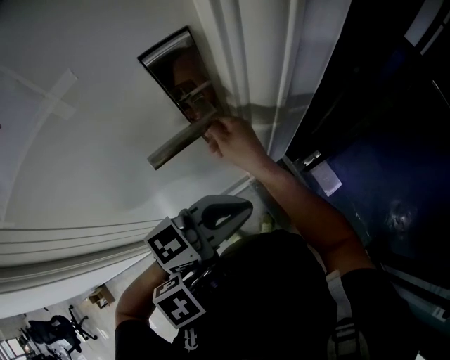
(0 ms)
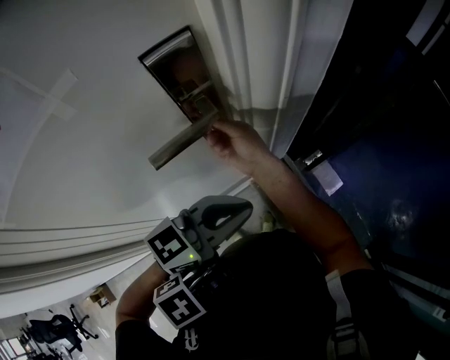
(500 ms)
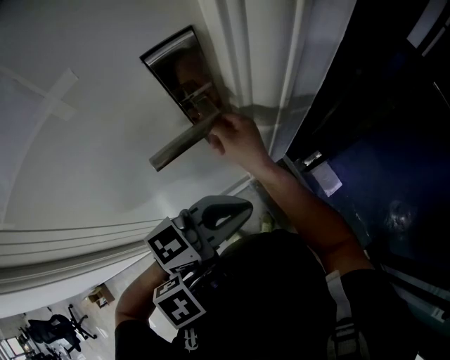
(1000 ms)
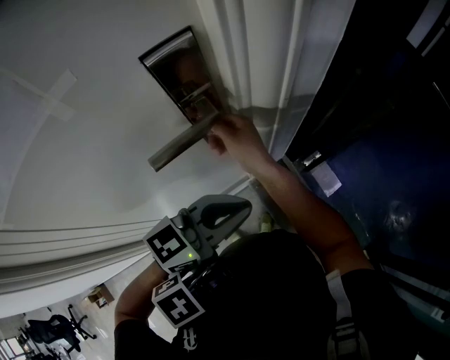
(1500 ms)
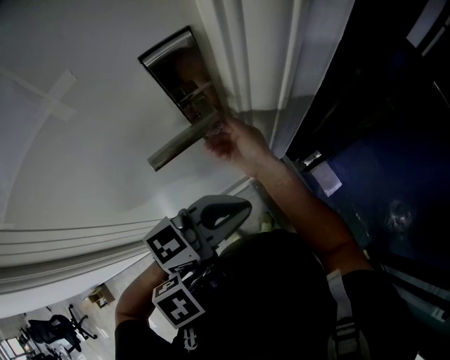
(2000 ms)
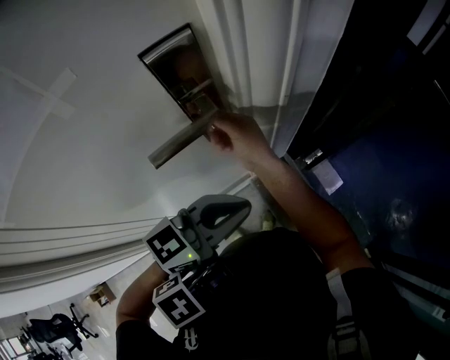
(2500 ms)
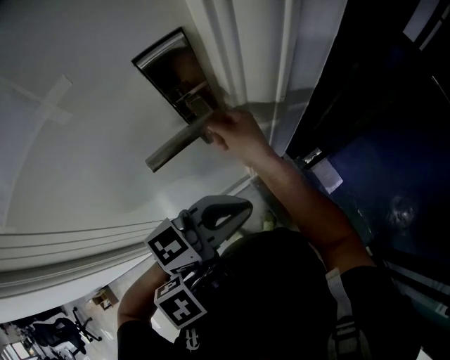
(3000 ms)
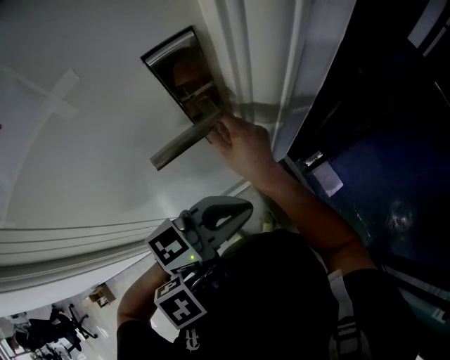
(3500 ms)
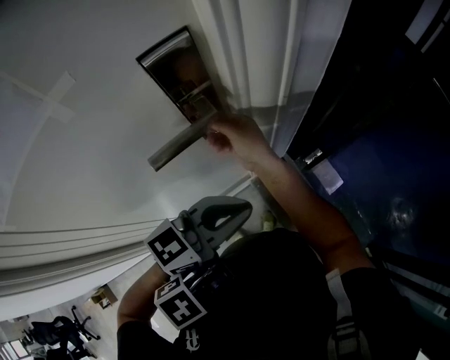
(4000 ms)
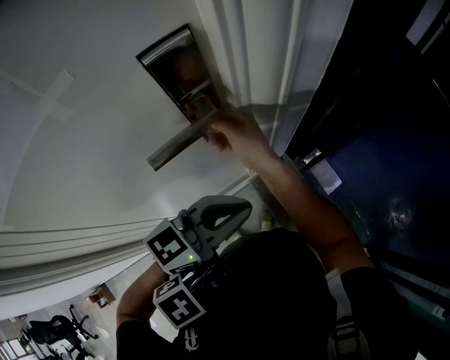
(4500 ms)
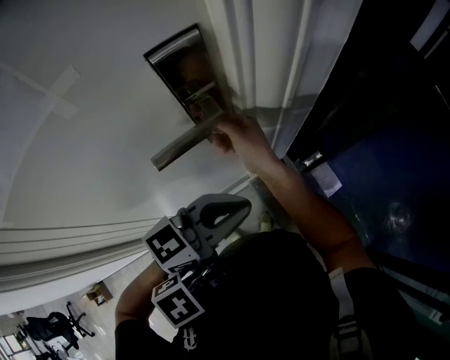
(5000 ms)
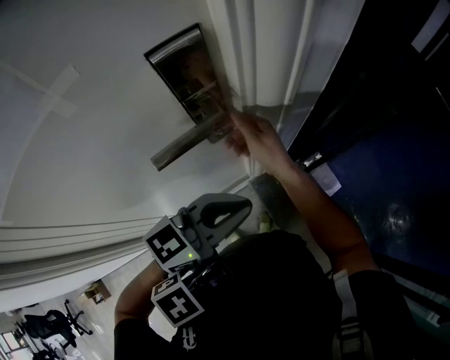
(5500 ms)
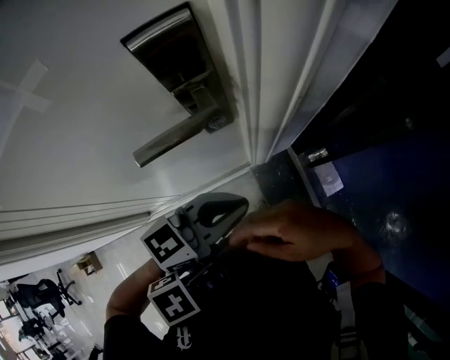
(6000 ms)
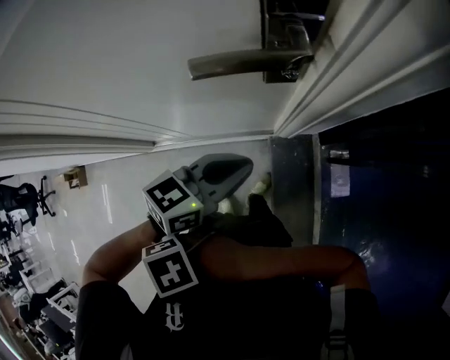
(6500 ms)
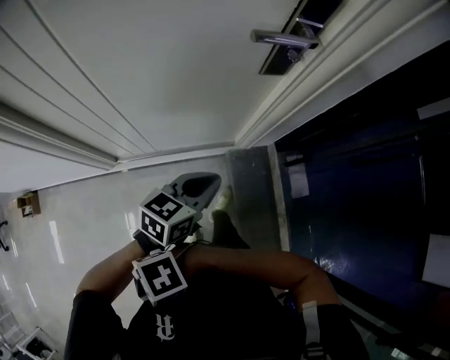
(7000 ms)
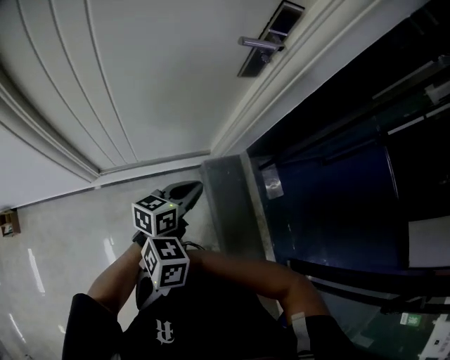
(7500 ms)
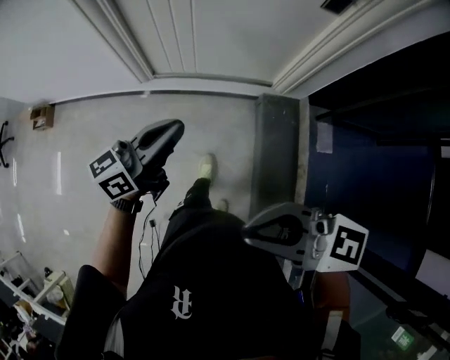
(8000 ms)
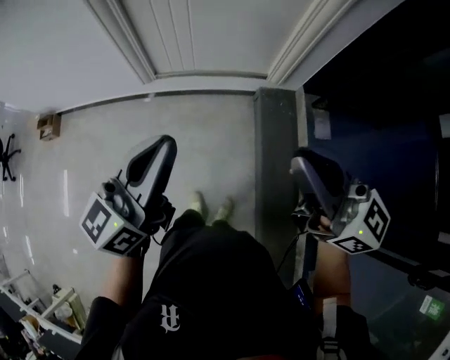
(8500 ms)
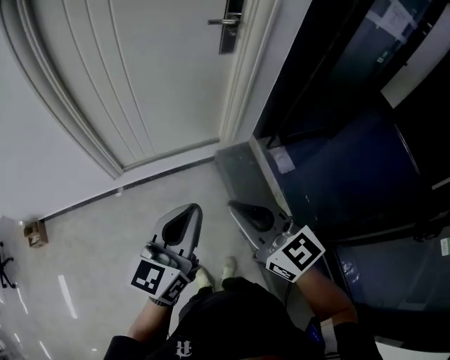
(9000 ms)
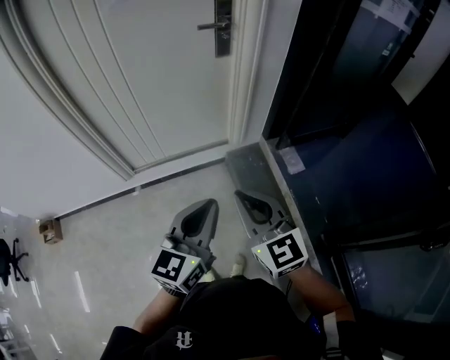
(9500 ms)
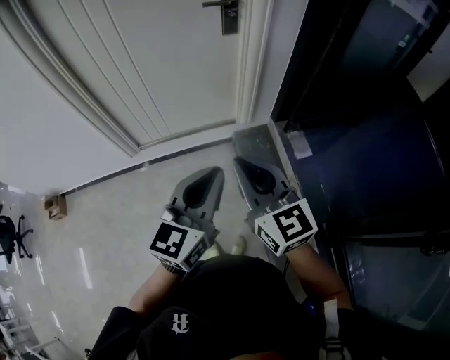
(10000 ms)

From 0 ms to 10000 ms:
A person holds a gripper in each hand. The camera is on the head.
From 0 ms to 4000 ms: Both grippers stay about where they are.
From 4000 ms to 6000 ms: The grippers move only a little.
From 6000 ms to 8000 ms: The left gripper ends up approximately 50 cm from where it was, and turns by roughly 40 degrees. Meanwhile the right gripper shifts by some 30 cm, and turns by about 50 degrees.
From 8000 ms to 10000 ms: The right gripper reaches about 5 cm upward, then returns, and swivels some 70 degrees, while the left gripper moves approximately 25 cm, and turns by some 30 degrees.

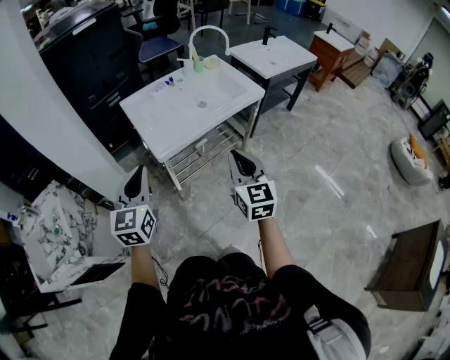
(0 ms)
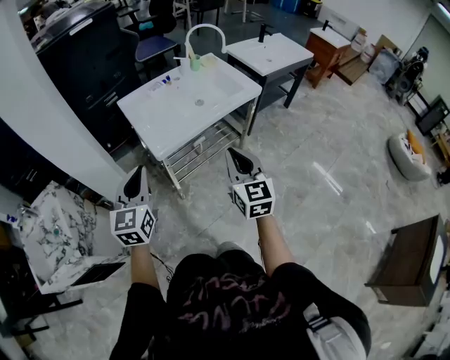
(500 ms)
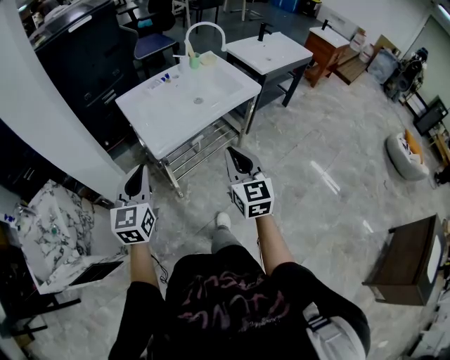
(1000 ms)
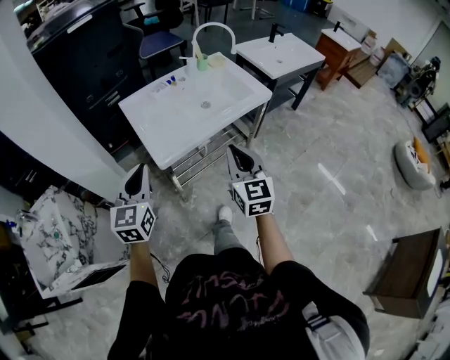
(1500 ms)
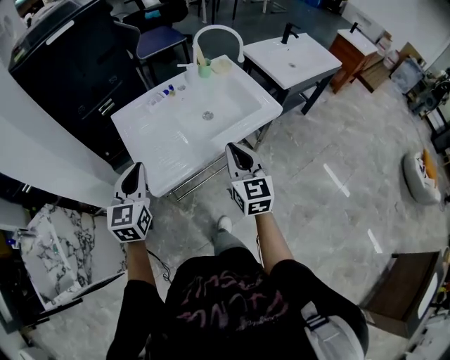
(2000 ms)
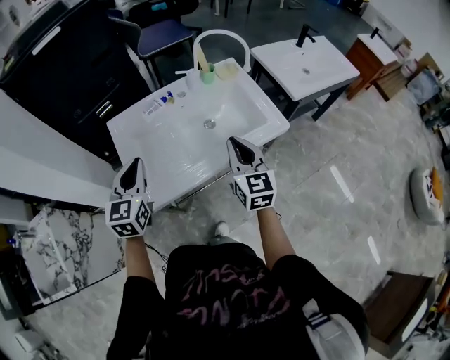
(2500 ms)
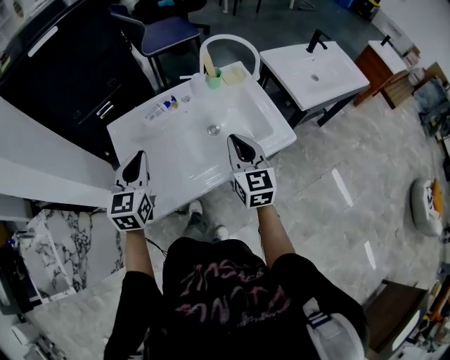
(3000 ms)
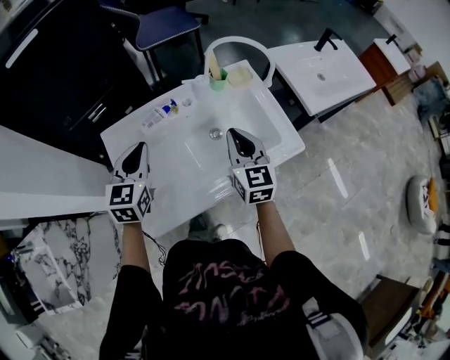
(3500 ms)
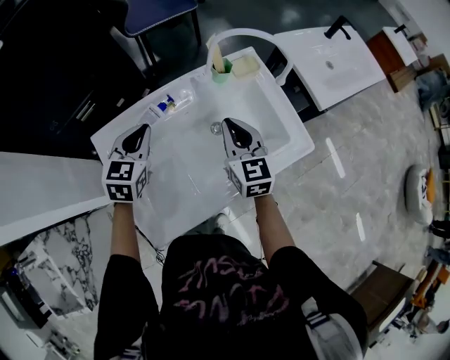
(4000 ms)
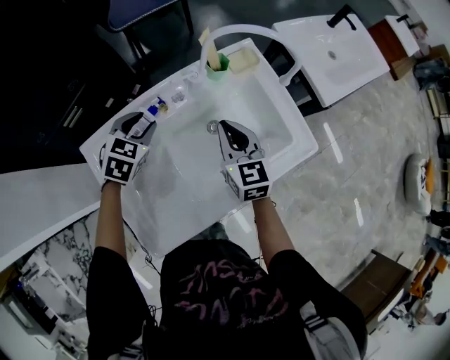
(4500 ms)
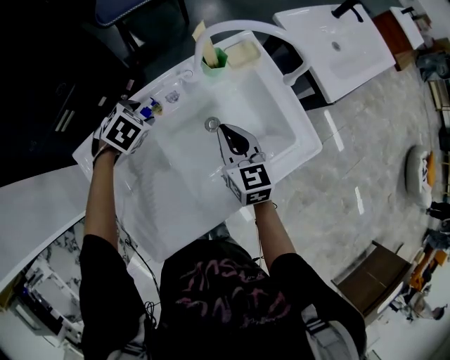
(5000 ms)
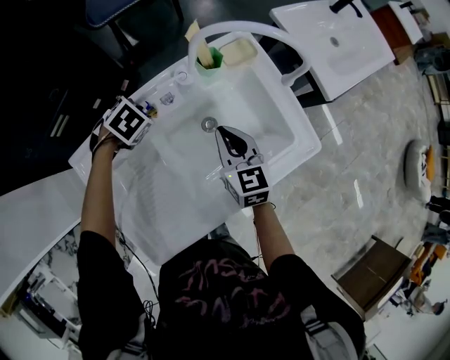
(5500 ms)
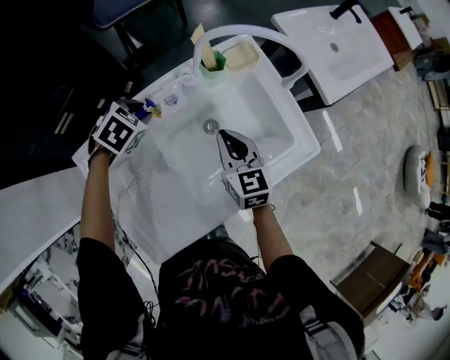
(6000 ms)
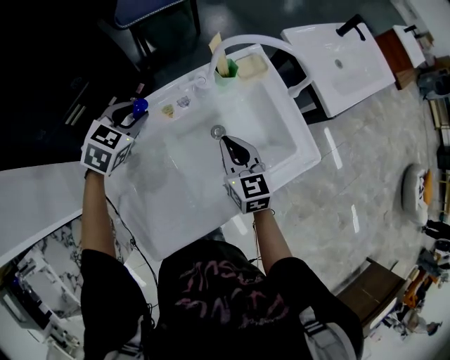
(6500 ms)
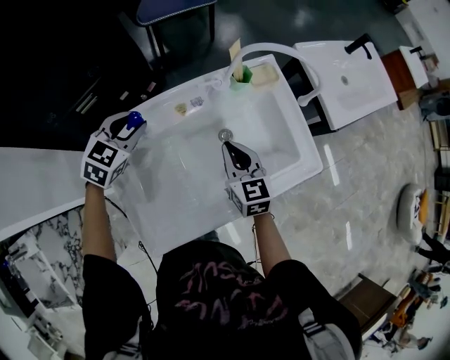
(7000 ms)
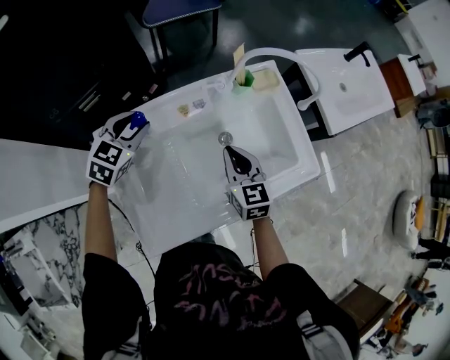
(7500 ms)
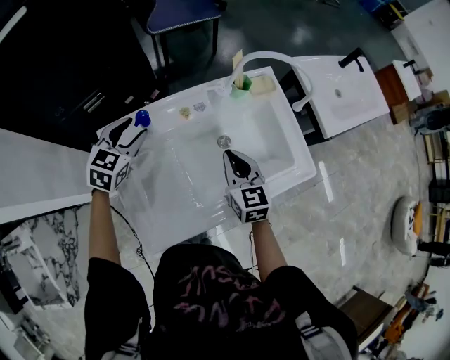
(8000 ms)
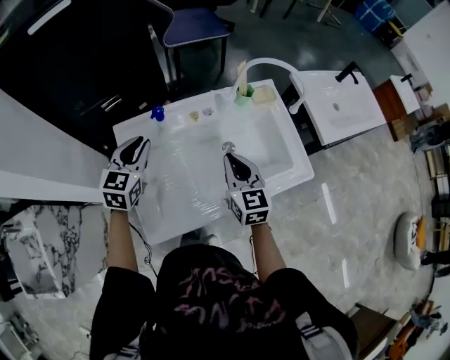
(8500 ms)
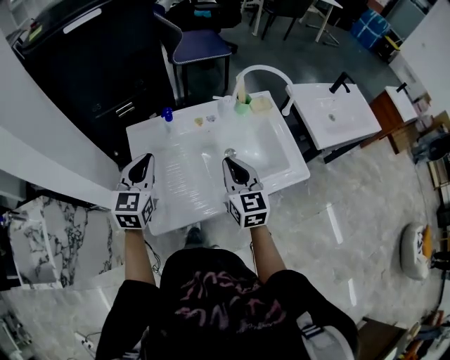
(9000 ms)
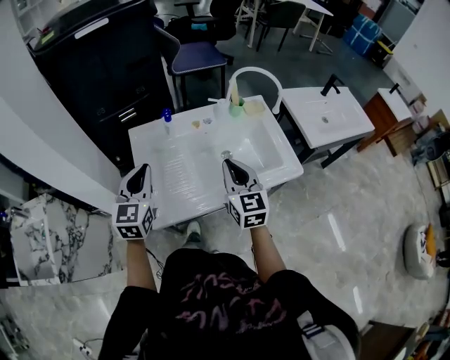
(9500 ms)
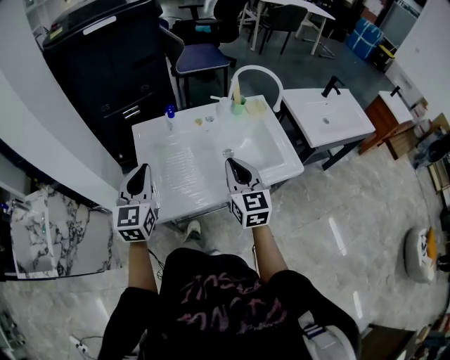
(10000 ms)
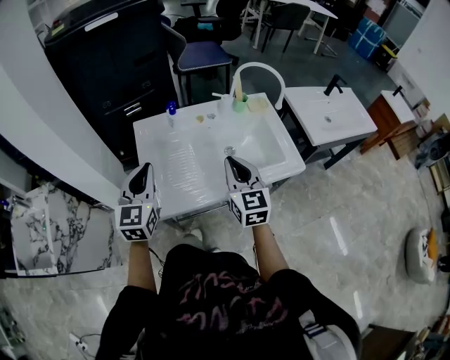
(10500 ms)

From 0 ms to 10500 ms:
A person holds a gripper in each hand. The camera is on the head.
From 0 ms to 2000 ms: Both grippers travel together forward, approximately 25 cm.
From 2000 ms to 4000 ms: The two grippers go roughly 35 cm forward.
From 4000 ms to 6500 ms: The right gripper goes some 10 cm downward. Meanwhile the left gripper goes downward and returns, some 15 cm each way, turns by roughly 20 degrees, and opens.
From 6500 ms to 8500 ms: The left gripper is displaced backward, upward and to the left by approximately 20 cm, swivels roughly 40 degrees, and opens and closes again. The right gripper shifts roughly 10 cm backward and upward.
From 8500 ms to 10500 ms: The left gripper shifts some 20 cm backward, and rotates roughly 20 degrees. Meanwhile the right gripper goes some 15 cm backward and upward.

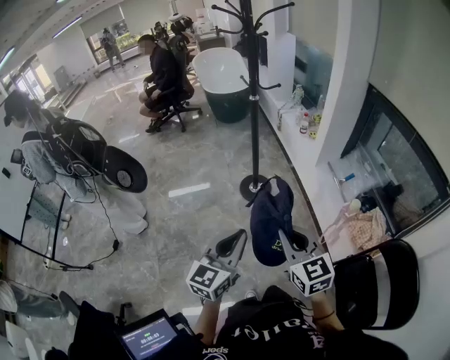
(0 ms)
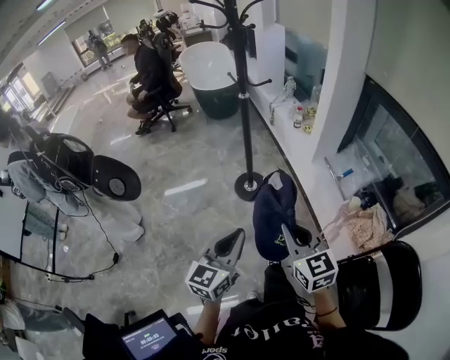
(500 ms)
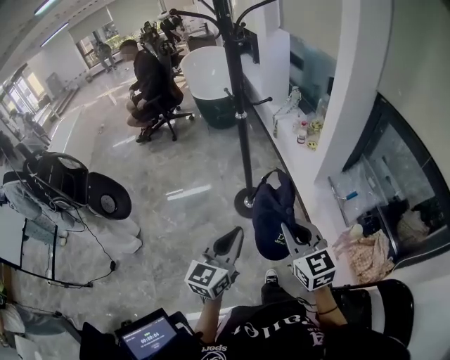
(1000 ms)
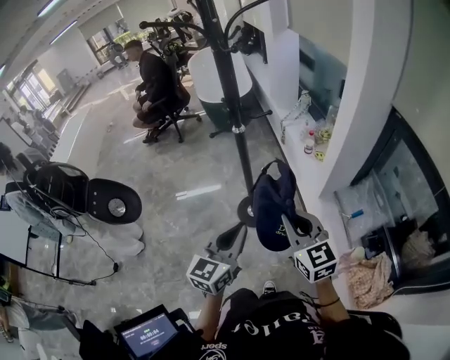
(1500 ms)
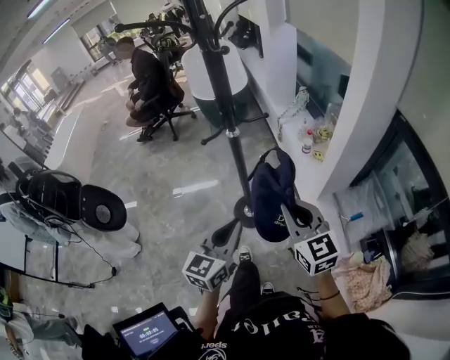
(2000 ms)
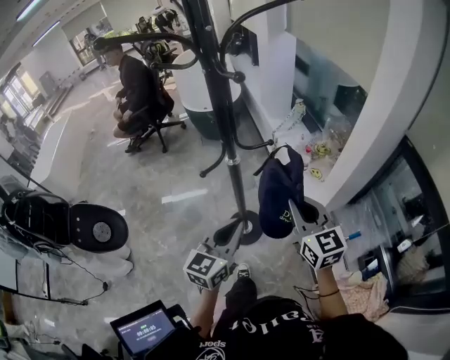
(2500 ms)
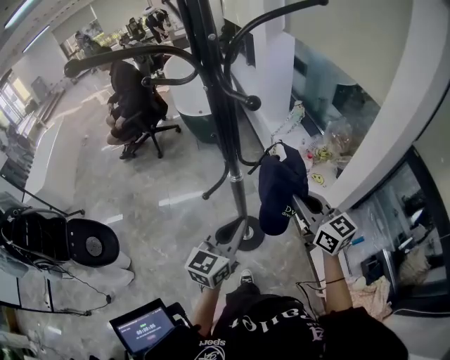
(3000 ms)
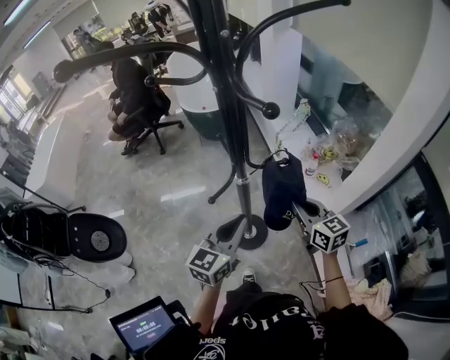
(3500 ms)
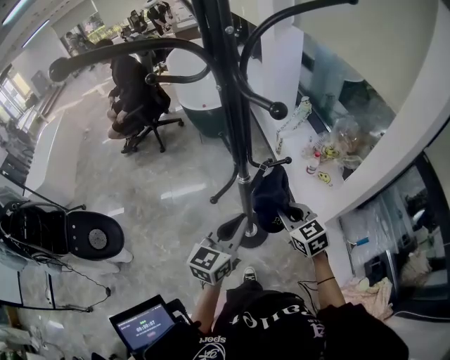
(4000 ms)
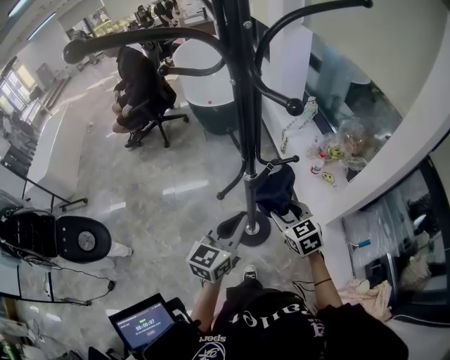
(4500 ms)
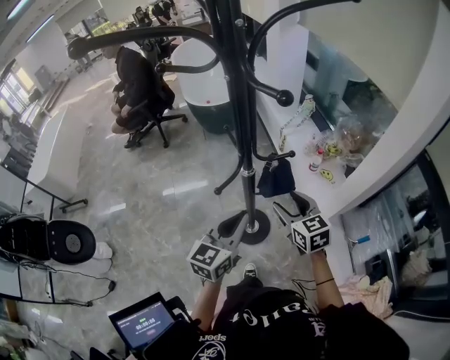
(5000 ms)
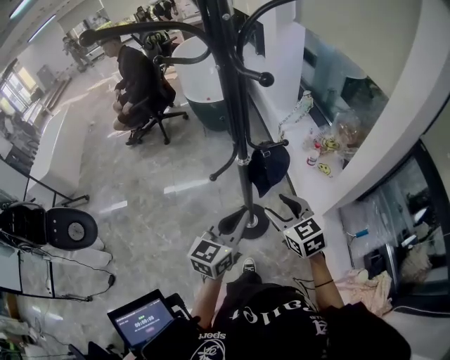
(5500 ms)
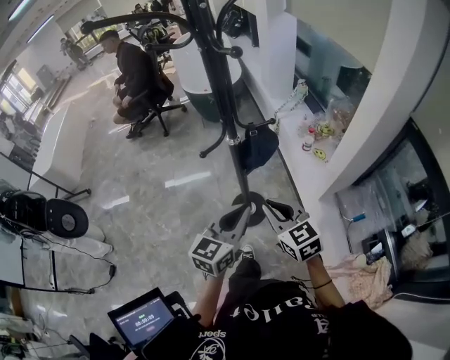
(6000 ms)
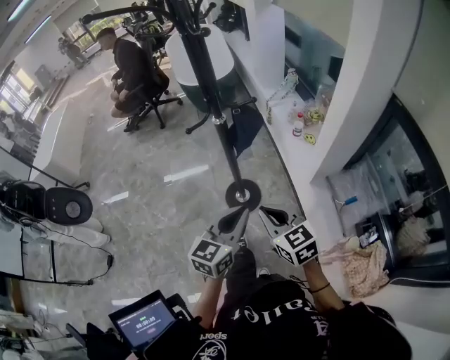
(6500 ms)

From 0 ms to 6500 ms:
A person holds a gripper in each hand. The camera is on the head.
From 0 ms to 2000 ms: The two grippers travel together, forward, roughly 40 cm.
From 2000 ms to 4500 ms: The left gripper heads forward, covering roughly 25 cm, while the right gripper goes some 30 cm forward and downward, turns by some 30 degrees, and opens.
From 4500 ms to 6500 ms: The right gripper is displaced backward by roughly 25 cm, and closes its fingers; the left gripper is displaced backward and to the right by about 25 cm.
